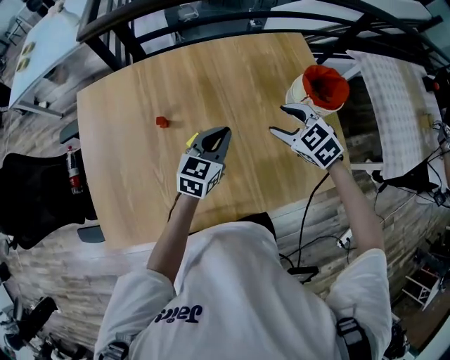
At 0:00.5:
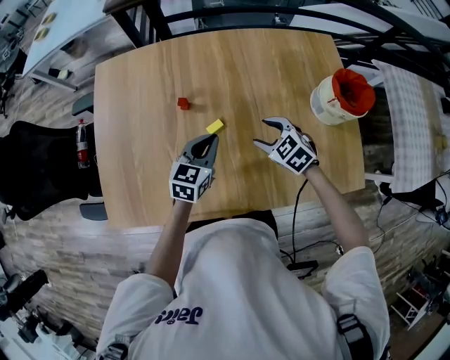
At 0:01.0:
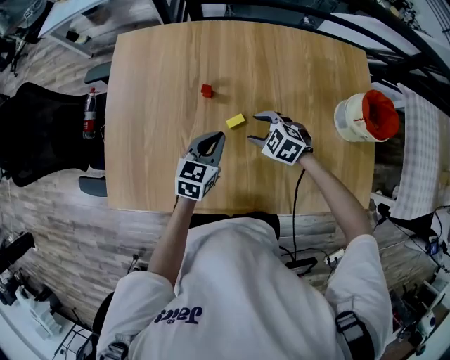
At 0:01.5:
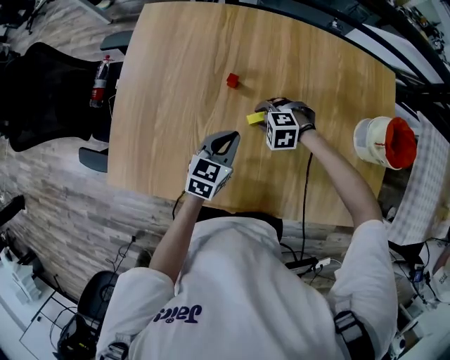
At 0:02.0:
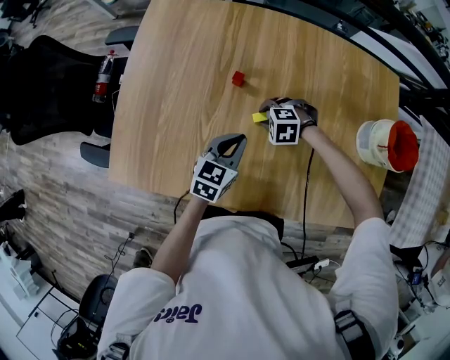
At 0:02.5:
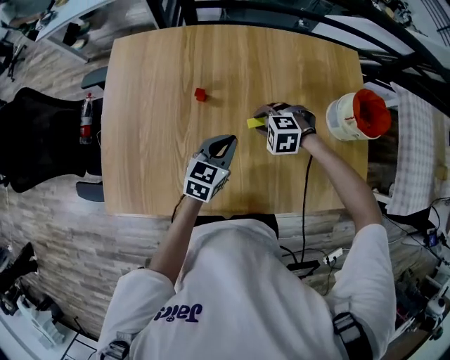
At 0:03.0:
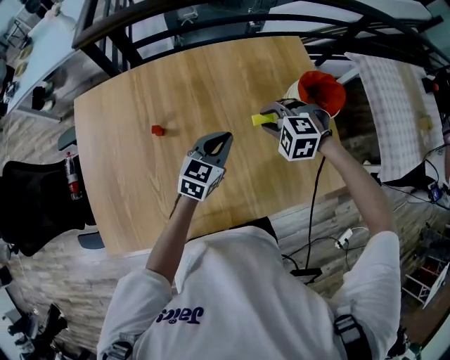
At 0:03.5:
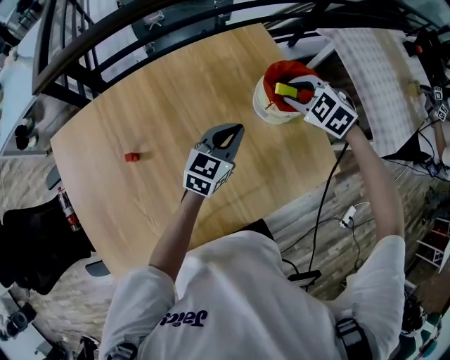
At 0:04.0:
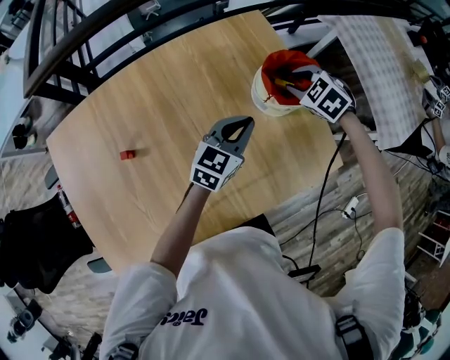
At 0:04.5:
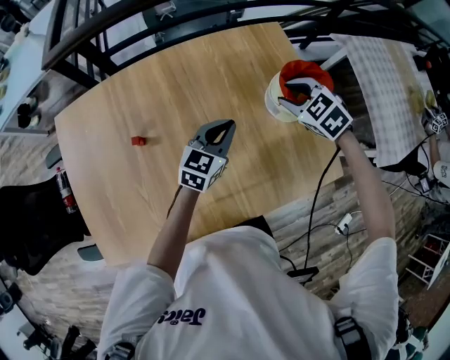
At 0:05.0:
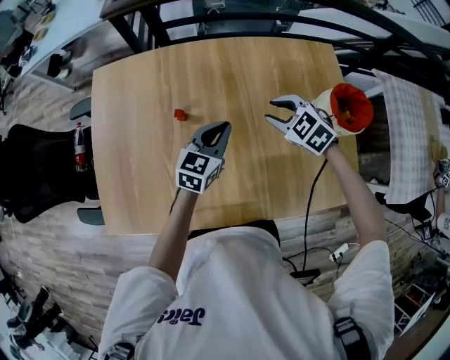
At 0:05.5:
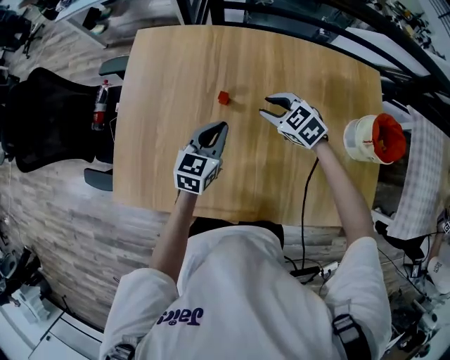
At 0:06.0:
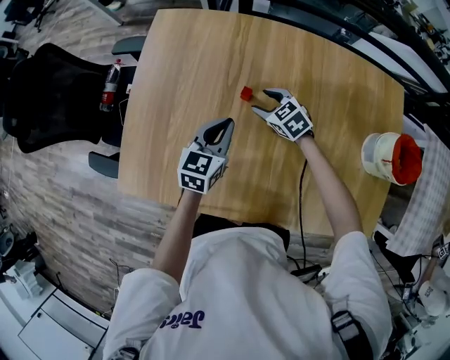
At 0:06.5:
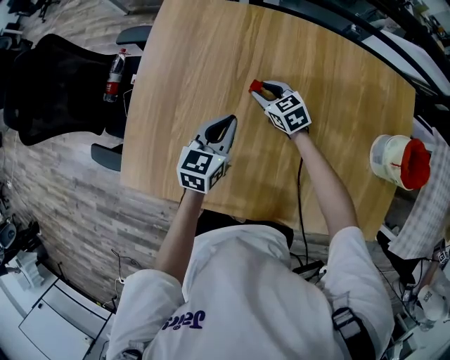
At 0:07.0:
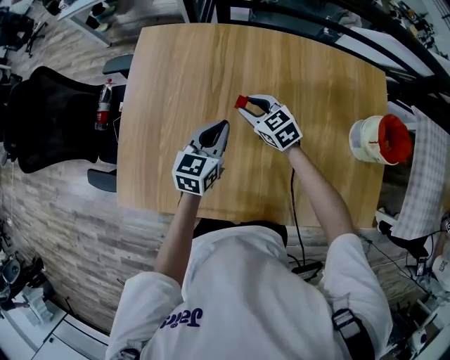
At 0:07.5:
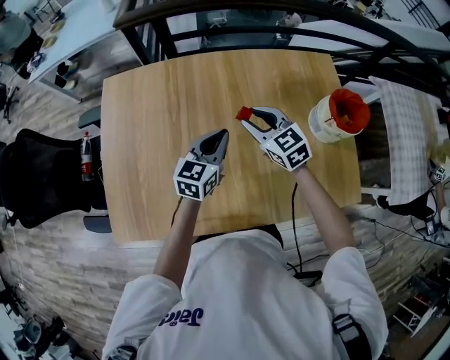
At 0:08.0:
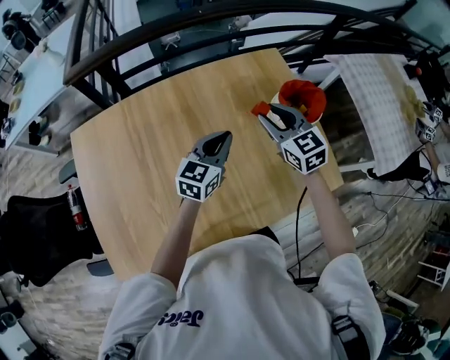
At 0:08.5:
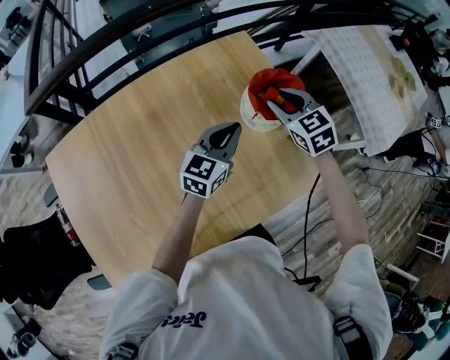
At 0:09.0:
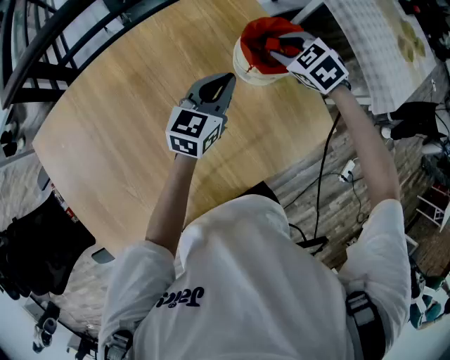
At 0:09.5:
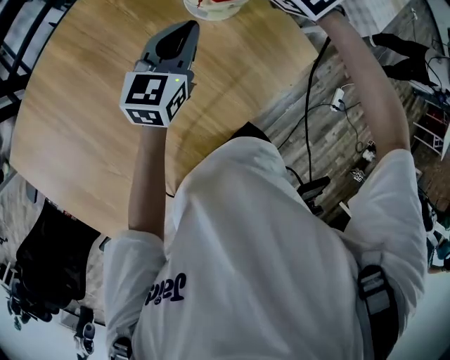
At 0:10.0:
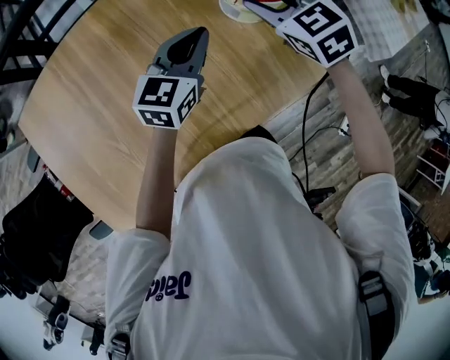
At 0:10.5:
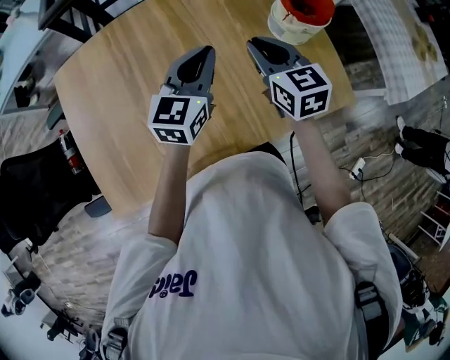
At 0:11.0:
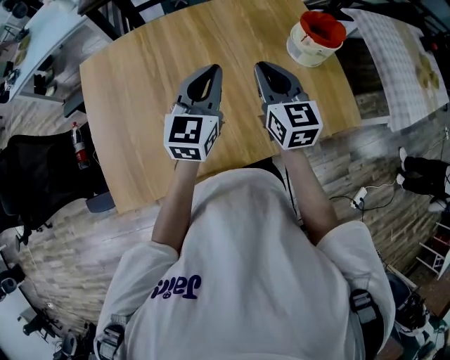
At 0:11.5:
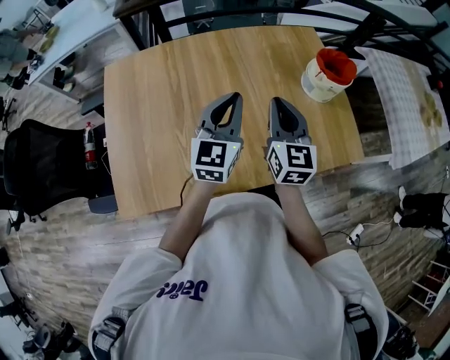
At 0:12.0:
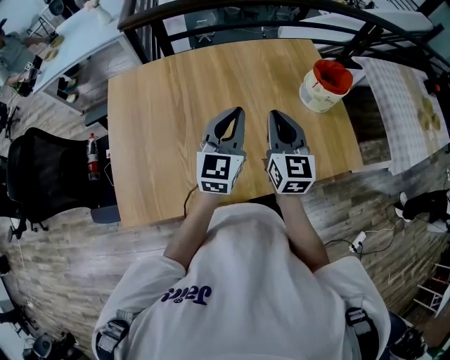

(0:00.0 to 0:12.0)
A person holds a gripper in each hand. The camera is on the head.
0:00.0 - 0:02.0: The left gripper ends up roughly 20 cm from where it was, and swivels roughly 20 degrees. Meanwhile the right gripper changes place by roughly 35 cm, rotates around the line of its fingers by roughly 50 degrees, counterclockwise from behind, and closes.
0:02.0 - 0:04.0: The right gripper moves some 50 cm, and twists roughly 60 degrees clockwise, seen from behind; the left gripper changes place by some 40 cm, and turns by roughly 40 degrees.
0:04.0 - 0:06.0: The two grippers travel together, about 50 cm. The right gripper changes its angle by some 40 degrees, and opens, while the left gripper swivels approximately 50 degrees.
0:06.0 - 0:08.0: The right gripper shifts by approximately 40 cm, rotates about 50 degrees, and closes, while the left gripper shifts by about 35 cm, and swivels roughly 40 degrees.
0:08.0 - 0:10.0: The grippers both shift to the right by about 10 cm.
0:10.0 - 0:12.0: The right gripper heads to the left and backward, covering roughly 30 cm, tips its fingers upward by roughly 30 degrees, and closes its fingers. The left gripper moves to the left, backward and upward, roughly 25 cm, and changes its angle by about 30 degrees.

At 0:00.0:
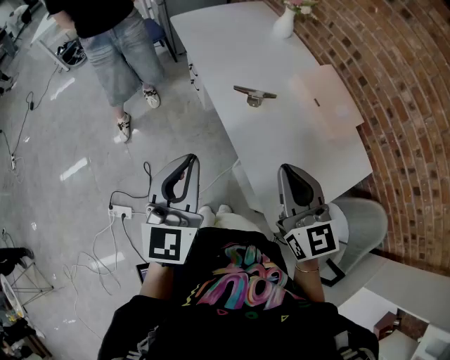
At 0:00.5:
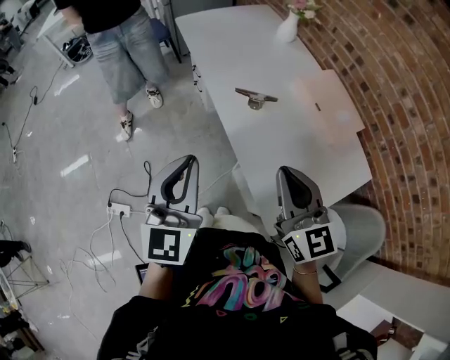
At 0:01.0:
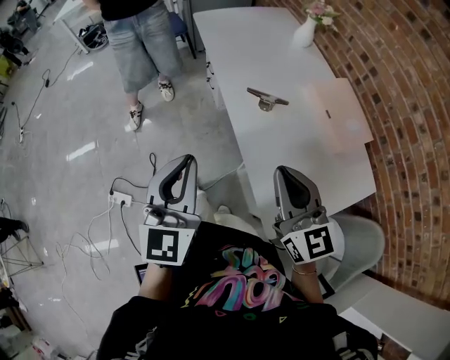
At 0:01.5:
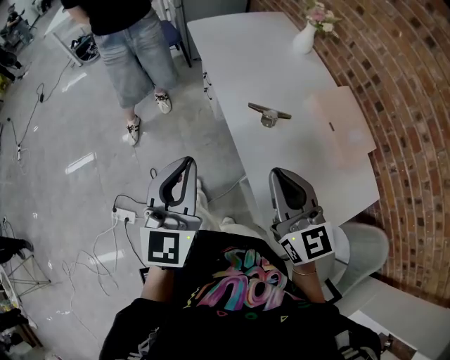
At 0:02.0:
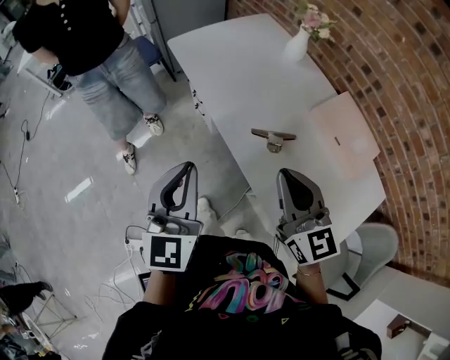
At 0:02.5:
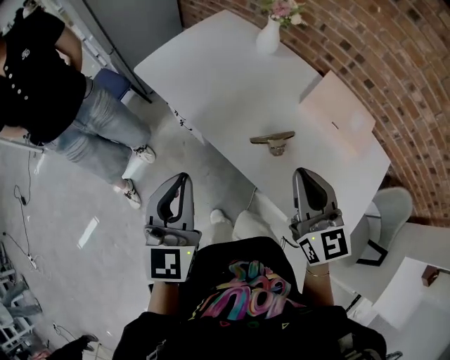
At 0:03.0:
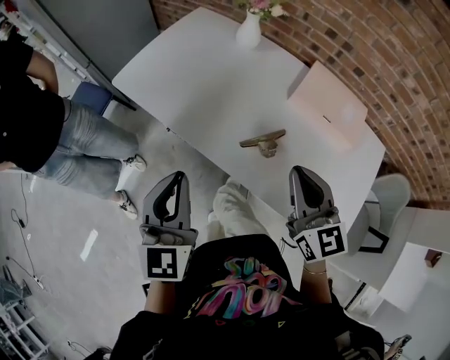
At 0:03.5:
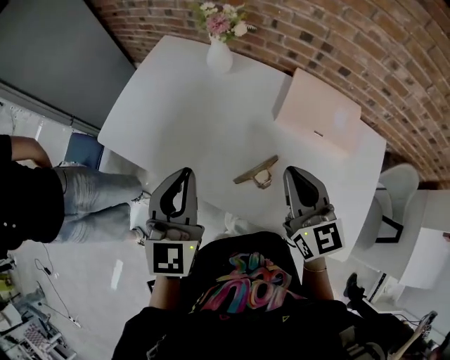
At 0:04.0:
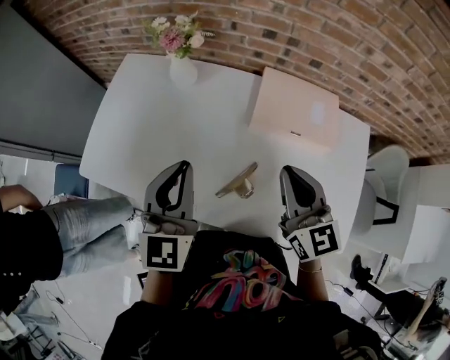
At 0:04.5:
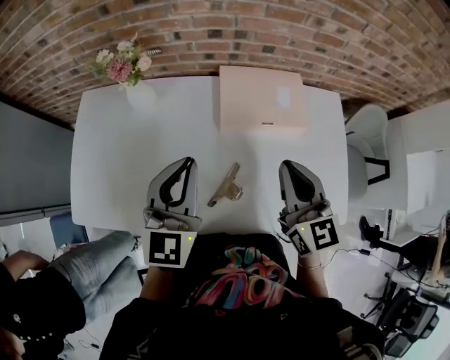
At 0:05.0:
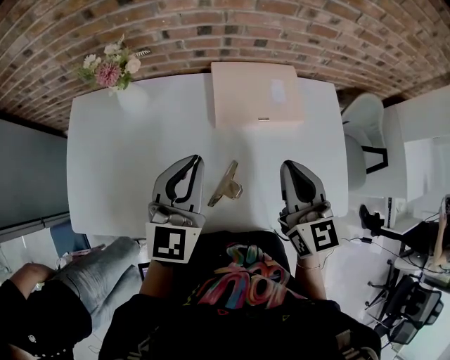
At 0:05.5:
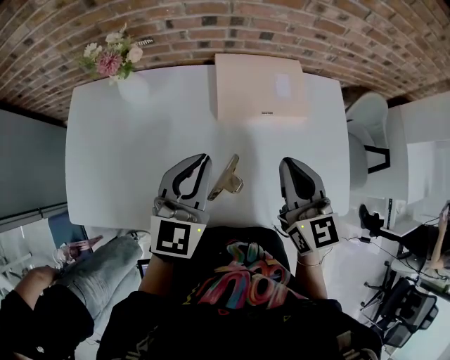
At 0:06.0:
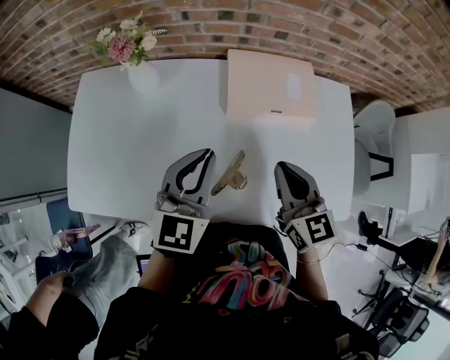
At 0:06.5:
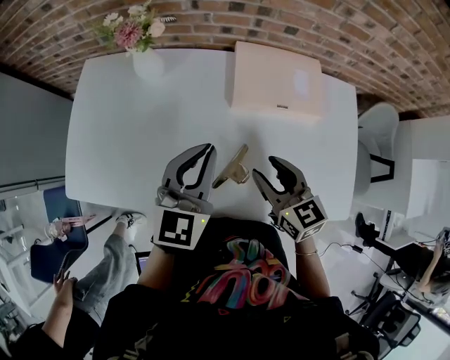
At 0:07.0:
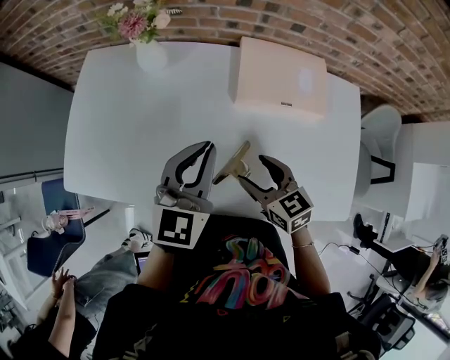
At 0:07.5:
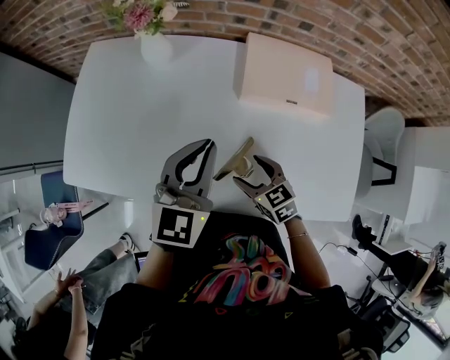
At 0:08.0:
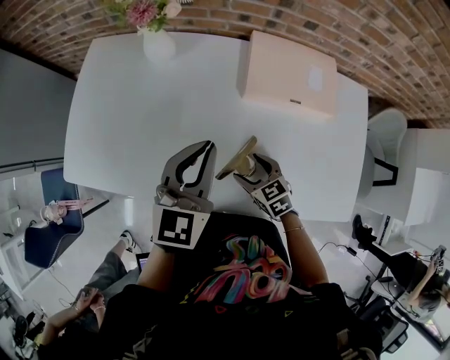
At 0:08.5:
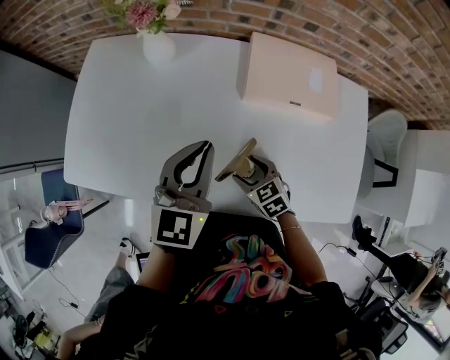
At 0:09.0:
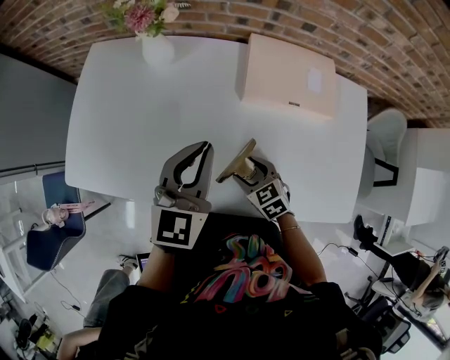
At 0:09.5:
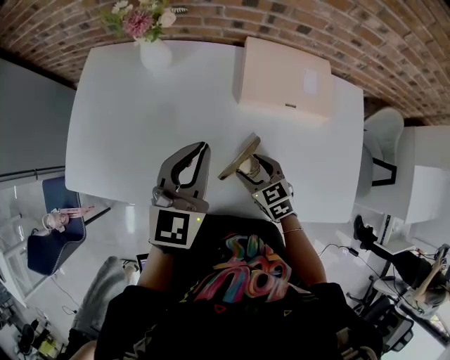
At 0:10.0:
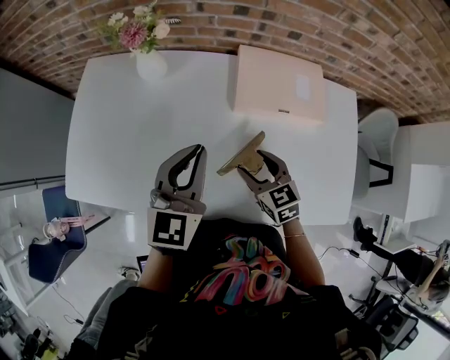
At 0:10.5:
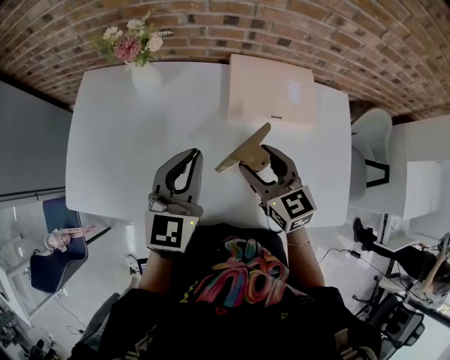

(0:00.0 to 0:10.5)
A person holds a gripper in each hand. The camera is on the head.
0:00.0 - 0:02.0: The two grippers go some 20 cm forward.
0:02.0 - 0:04.0: The left gripper moves roughly 35 cm, and rotates approximately 40 degrees. Meanwhile the right gripper shifts by roughly 25 cm, and changes its angle by roughly 40 degrees.
0:04.0 - 0:06.5: The right gripper shifts about 10 cm downward, and opens; the left gripper shifts approximately 10 cm to the right, downward and forward, and turns by some 20 degrees.
0:06.5 - 0:08.5: The right gripper travels downward by about 15 cm, rotates approximately 30 degrees, and opens.
0:08.5 - 0:10.5: The right gripper travels upward by about 20 cm, and changes its angle by roughly 30 degrees.

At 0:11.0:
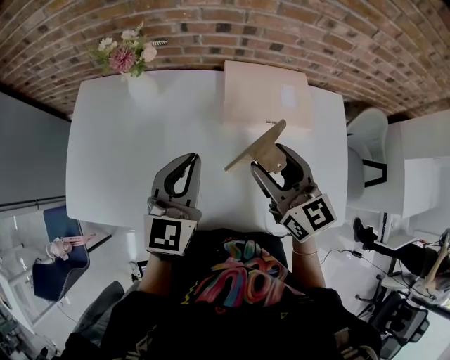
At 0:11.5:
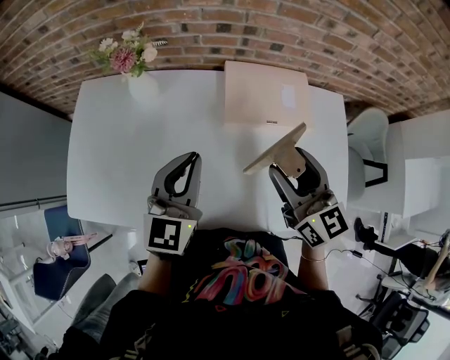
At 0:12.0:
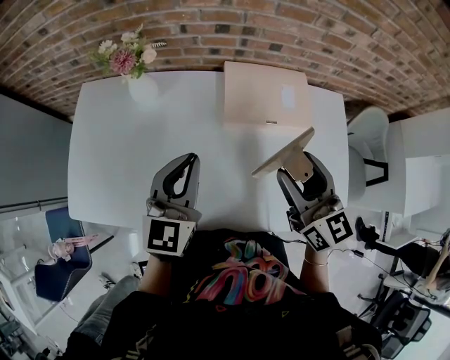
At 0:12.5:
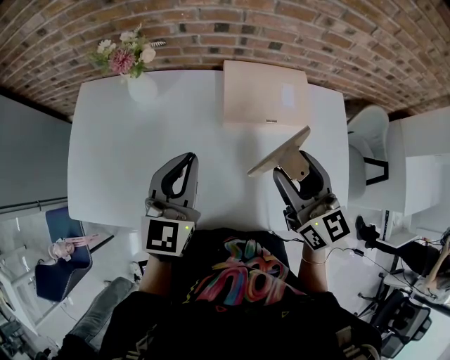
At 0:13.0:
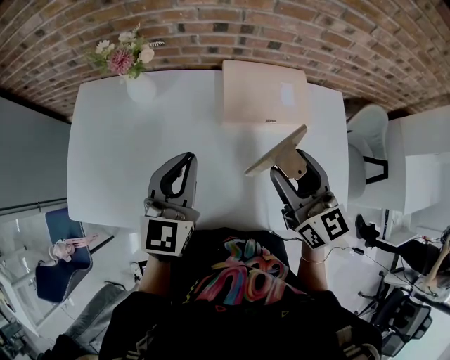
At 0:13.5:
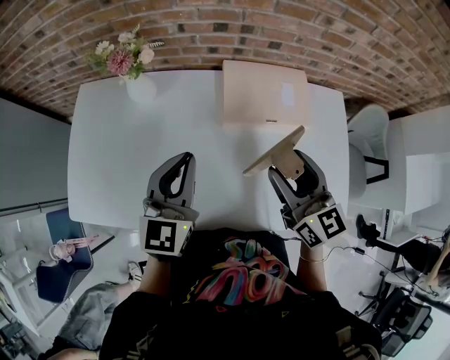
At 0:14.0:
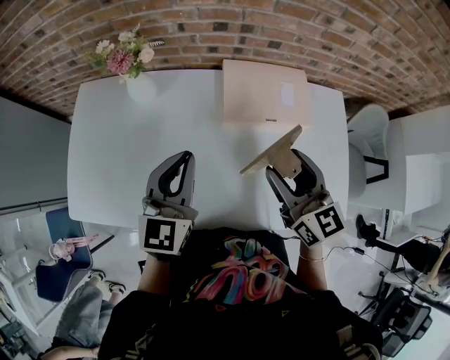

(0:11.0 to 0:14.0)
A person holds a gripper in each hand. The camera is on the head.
0:11.0 - 0:12.5: The right gripper moves some 5 cm.
0:12.5 - 0:14.0: The grippers stay close to where they were, moving slightly.

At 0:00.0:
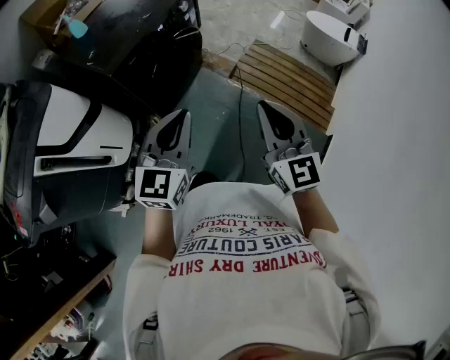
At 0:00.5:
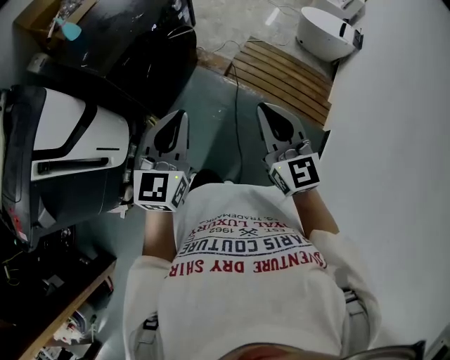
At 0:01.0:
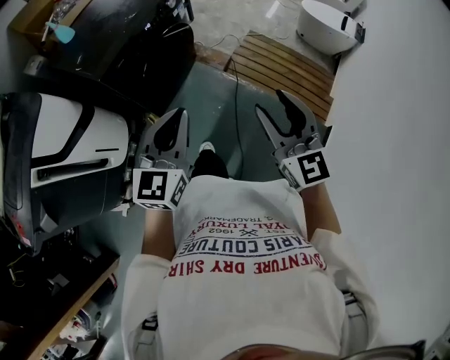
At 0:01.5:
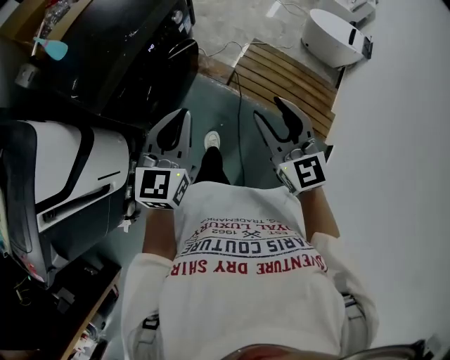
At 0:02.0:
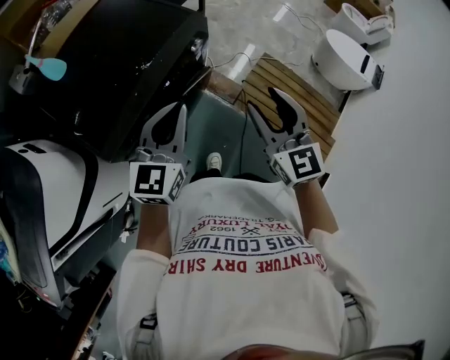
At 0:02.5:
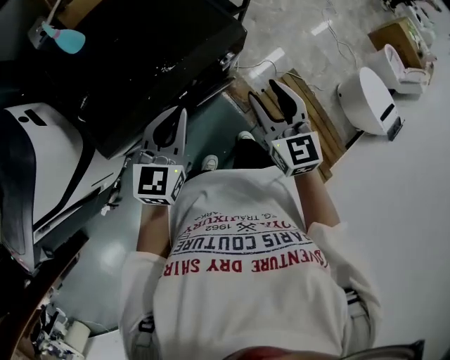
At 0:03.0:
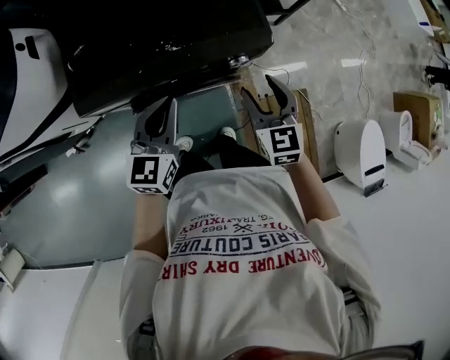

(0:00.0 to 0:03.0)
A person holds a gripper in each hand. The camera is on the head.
0:00.0 - 0:01.5: The two grippers go roughly 20 cm forward. The right gripper opens.
0:01.5 - 0:03.0: The right gripper changes place by about 50 cm, and changes its angle by about 40 degrees, while the left gripper shifts by approximately 35 cm, and changes its angle by about 50 degrees.
